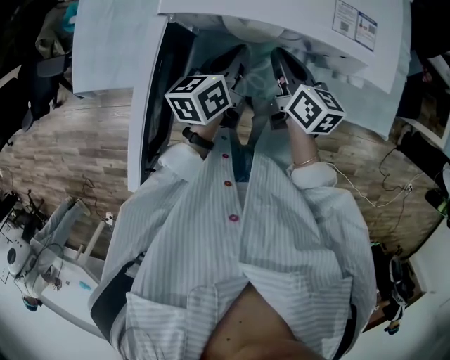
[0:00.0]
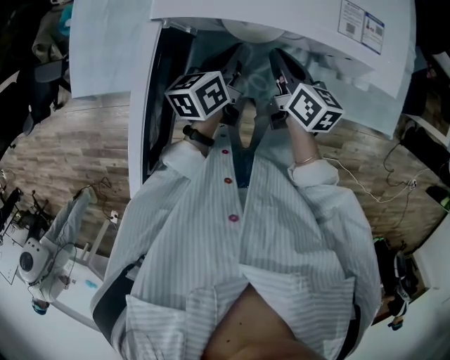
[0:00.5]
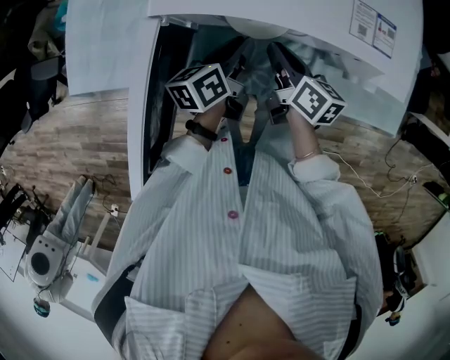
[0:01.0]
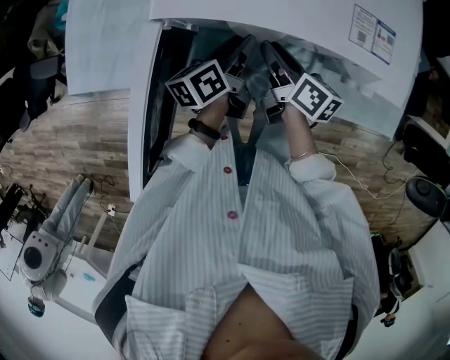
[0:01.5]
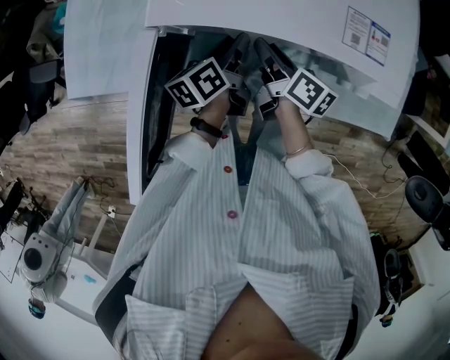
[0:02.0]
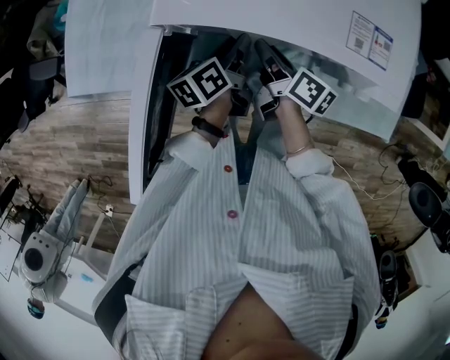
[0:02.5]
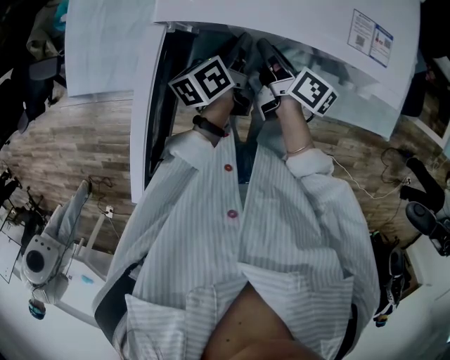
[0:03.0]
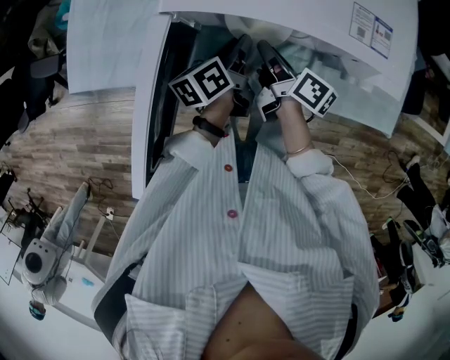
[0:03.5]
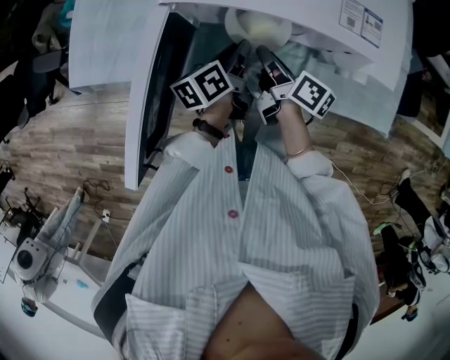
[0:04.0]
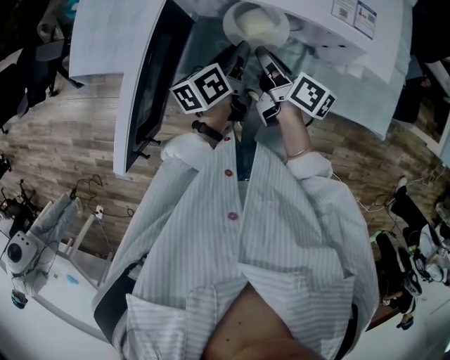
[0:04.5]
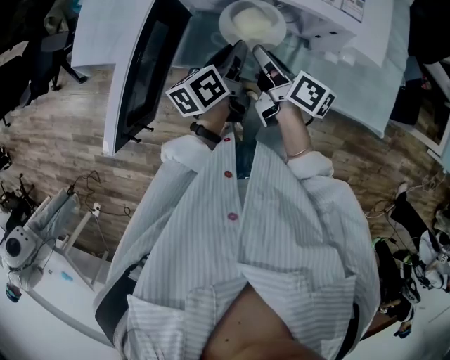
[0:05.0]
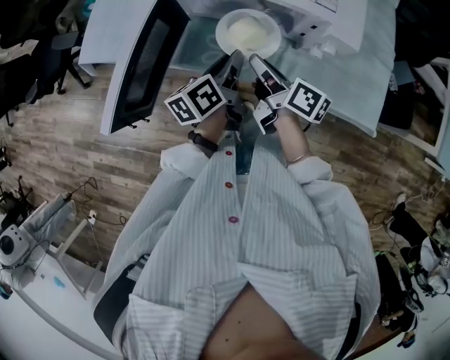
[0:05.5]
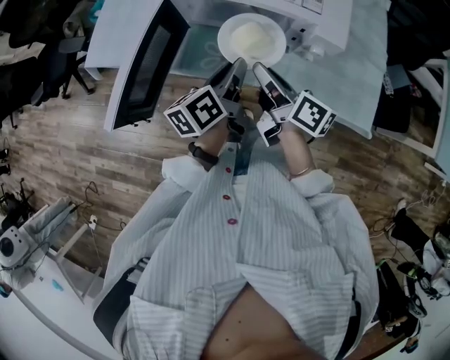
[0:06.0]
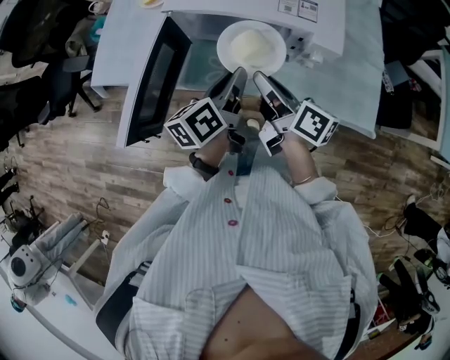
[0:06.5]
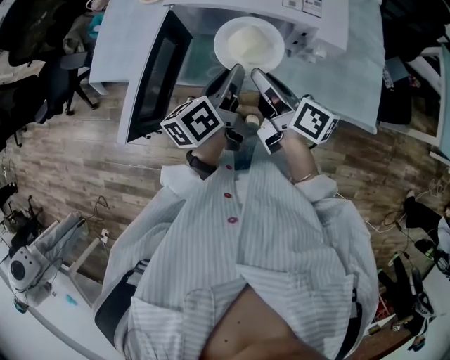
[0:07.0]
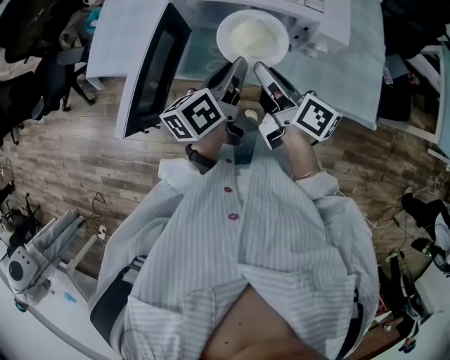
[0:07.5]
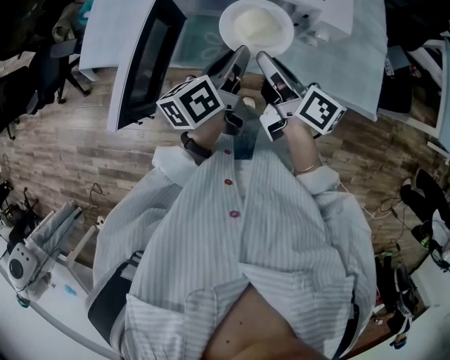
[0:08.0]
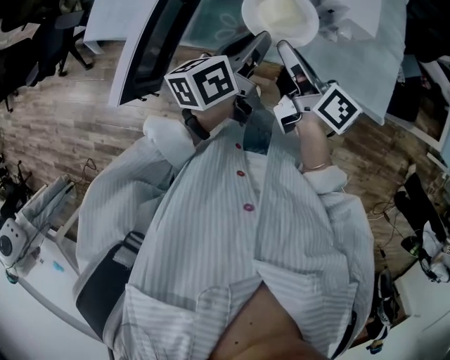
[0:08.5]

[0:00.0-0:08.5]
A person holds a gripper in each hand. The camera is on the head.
0:00.0 to 0:02.0: Both grippers travel together downward, approximately 5 cm. The right gripper turns by roughly 20 degrees, and opens. The left gripper opens.
0:02.0 to 0:04.0: The grippers move only a little.
0:04.0 to 0:06.5: Both grippers move upward and backward, roughly 20 cm.
0:06.5 to 0:08.5: The grippers move only a little.

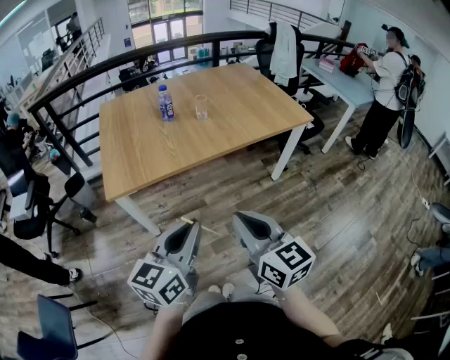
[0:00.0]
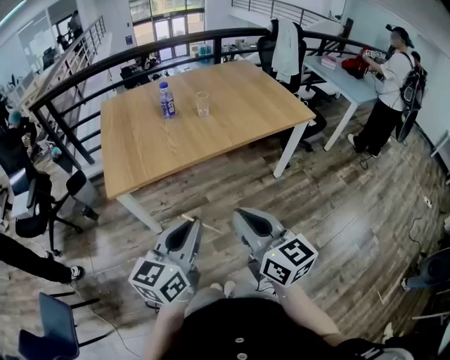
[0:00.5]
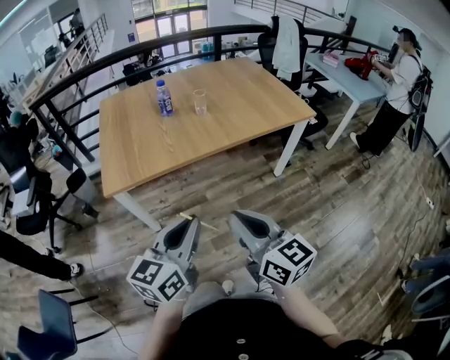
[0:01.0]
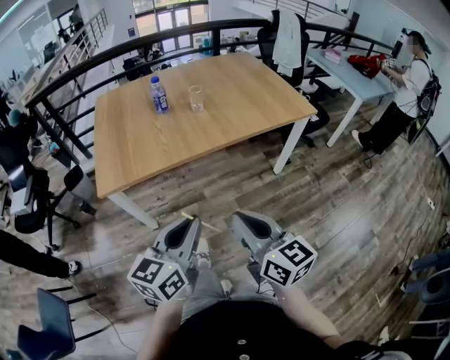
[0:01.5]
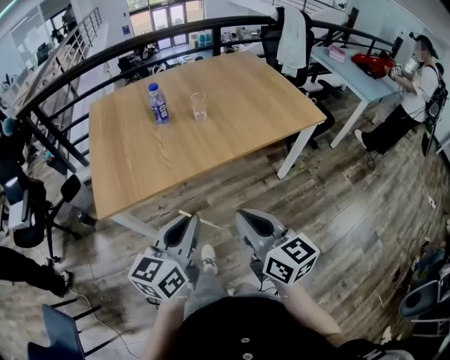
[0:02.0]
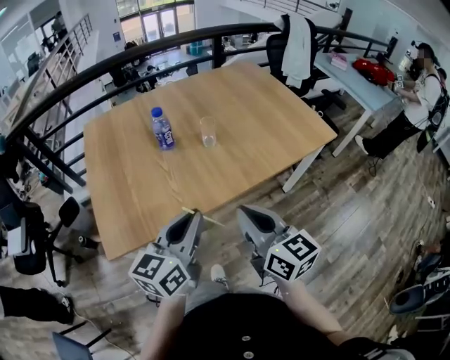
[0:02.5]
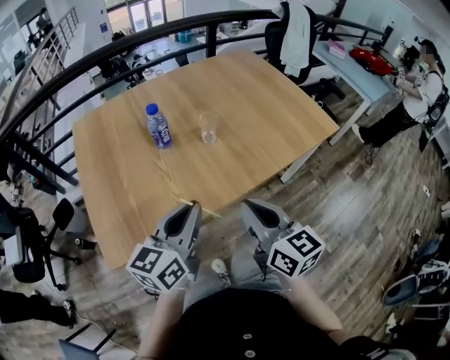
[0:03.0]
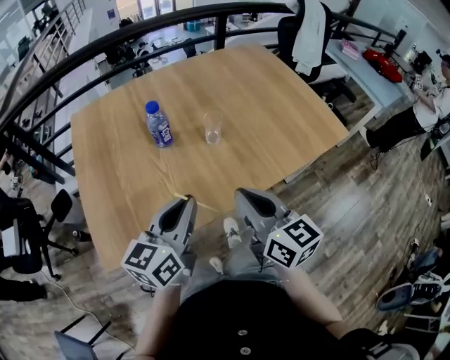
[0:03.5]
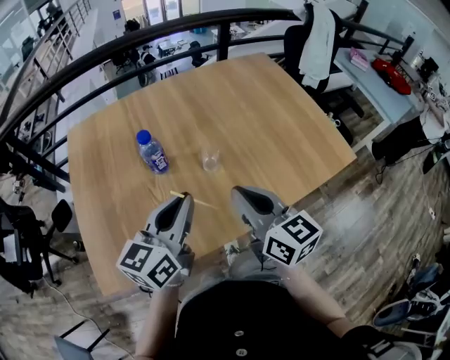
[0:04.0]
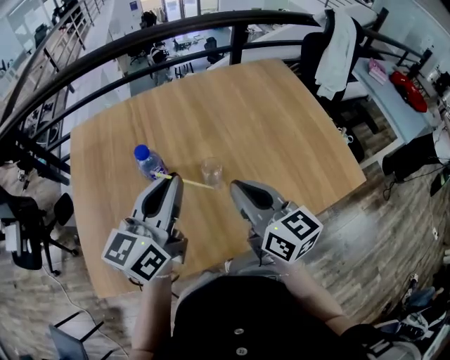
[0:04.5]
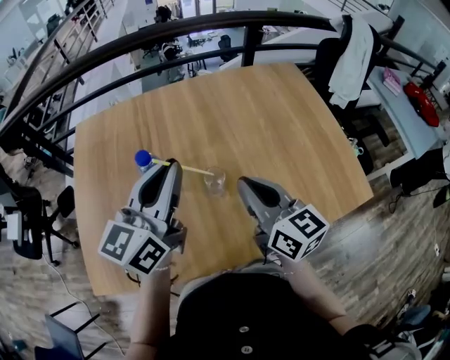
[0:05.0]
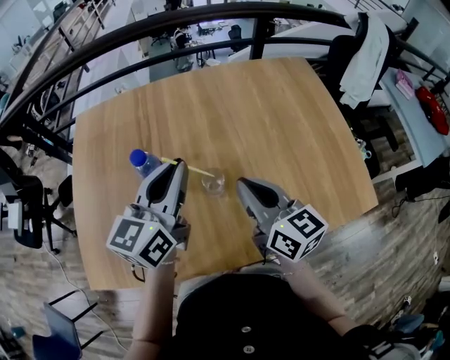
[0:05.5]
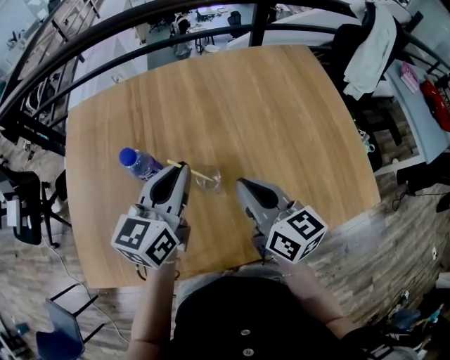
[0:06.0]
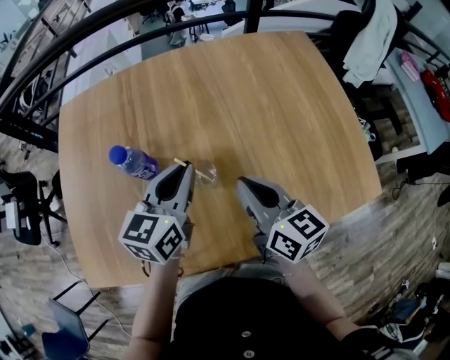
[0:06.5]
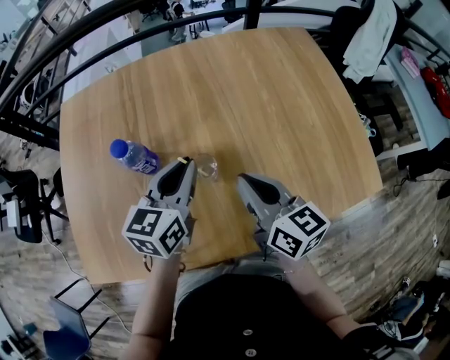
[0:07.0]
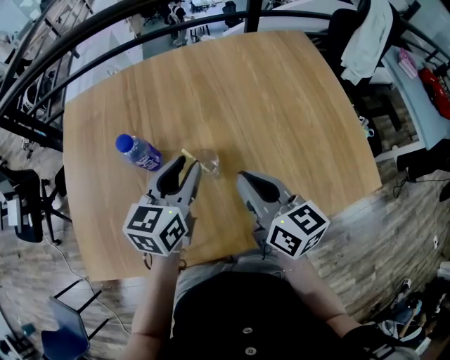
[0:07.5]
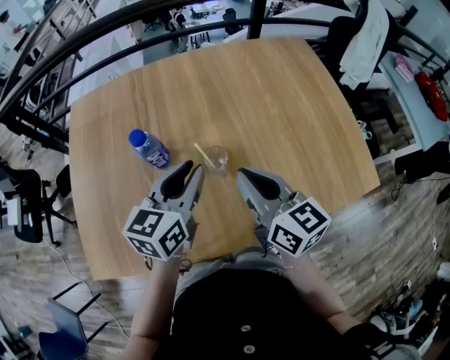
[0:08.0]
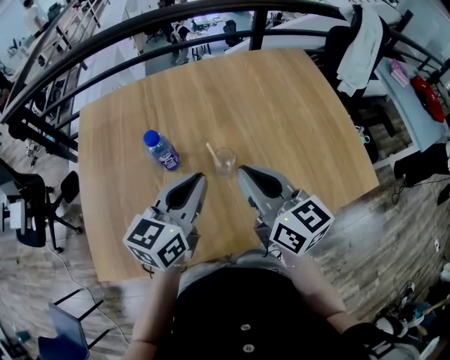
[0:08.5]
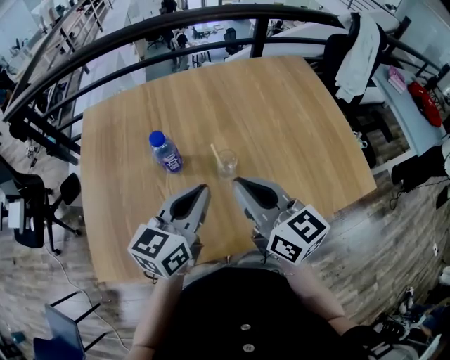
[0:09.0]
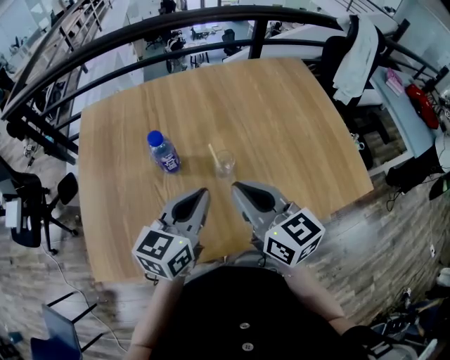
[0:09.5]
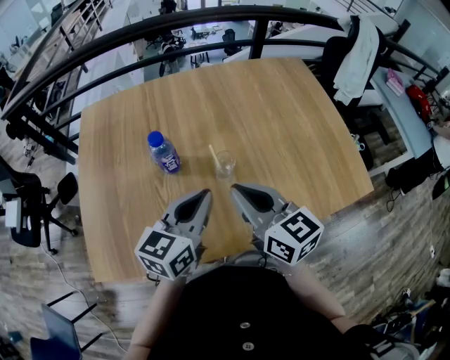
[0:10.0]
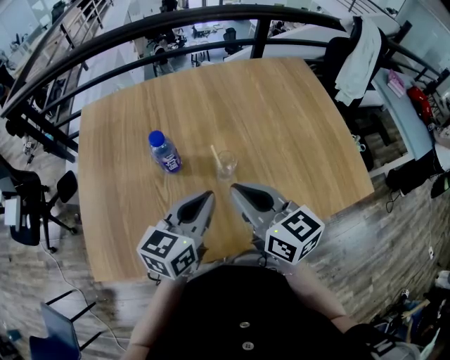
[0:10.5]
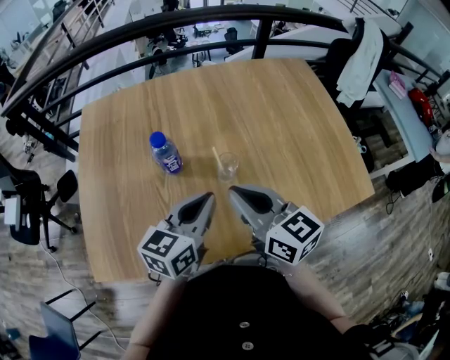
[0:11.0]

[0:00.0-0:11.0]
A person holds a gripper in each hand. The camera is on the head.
0:00.0 to 0:02.0: Both grippers move forward, some 15 cm.
0:02.0 to 0:03.5: The grippers both shift forward by roughly 30 cm.
0:03.5 to 0:05.5: Both grippers move forward, roughly 25 cm.
0:05.5 to 0:07.5: The left gripper is displaced downward by roughly 10 cm, and opens its fingers.
0:07.5 to 0:09.0: The right gripper moves upward, to the left and backward, approximately 10 cm, while the left gripper heads backward and upward, covering approximately 10 cm, and closes its fingers.
0:09.0 to 0:11.0: There are only small adjustments of the grippers.

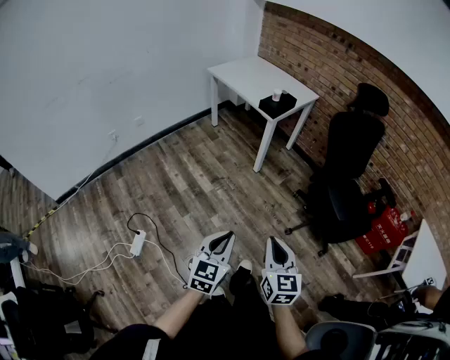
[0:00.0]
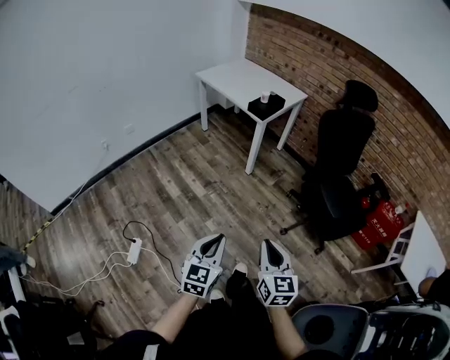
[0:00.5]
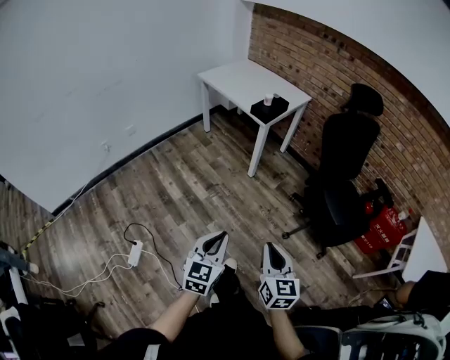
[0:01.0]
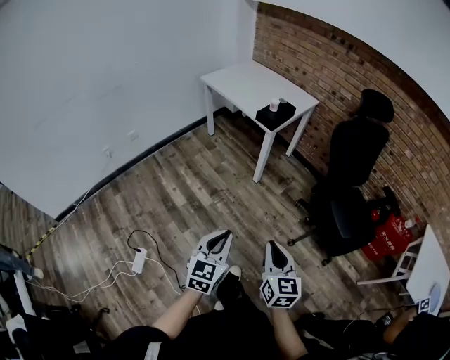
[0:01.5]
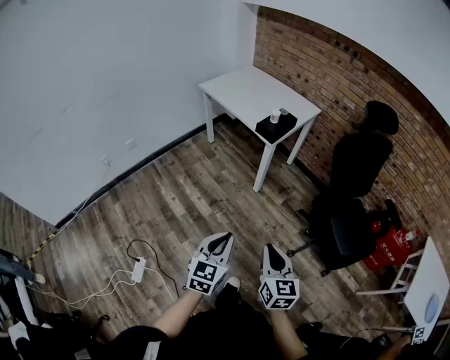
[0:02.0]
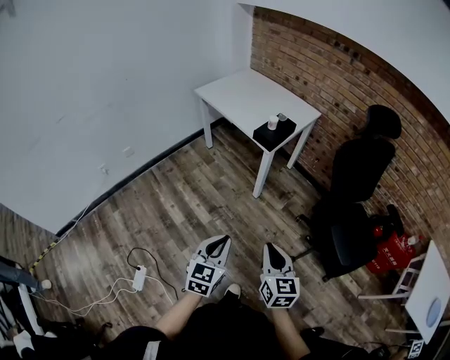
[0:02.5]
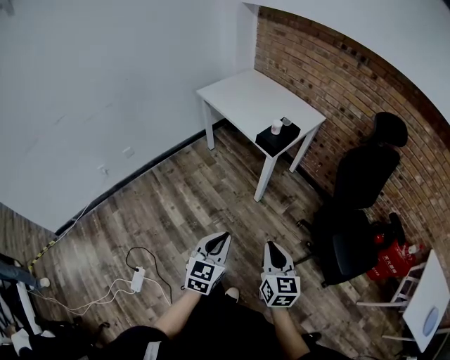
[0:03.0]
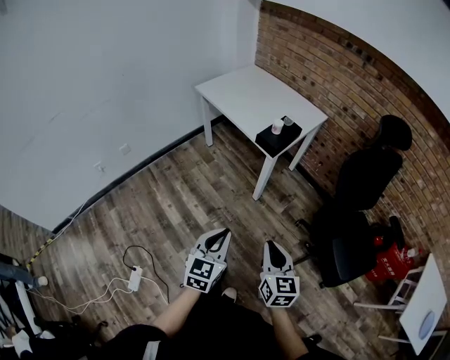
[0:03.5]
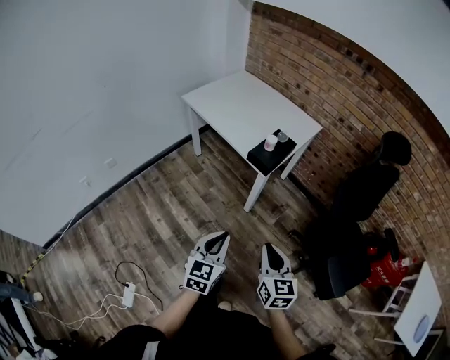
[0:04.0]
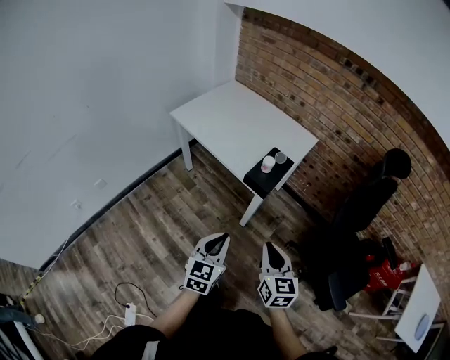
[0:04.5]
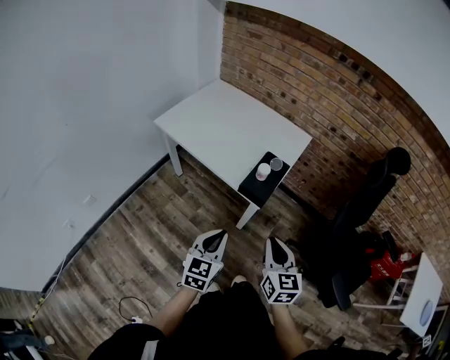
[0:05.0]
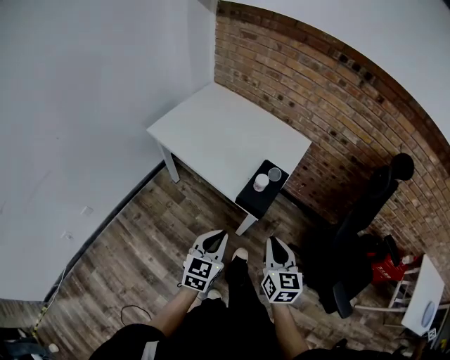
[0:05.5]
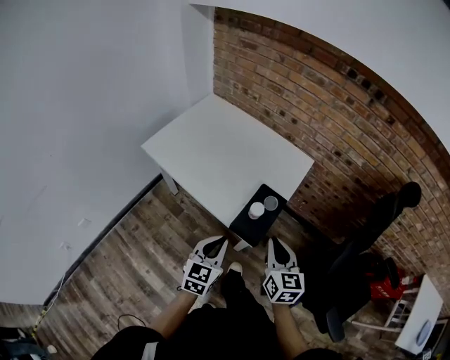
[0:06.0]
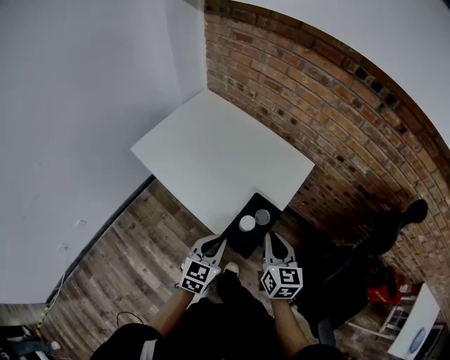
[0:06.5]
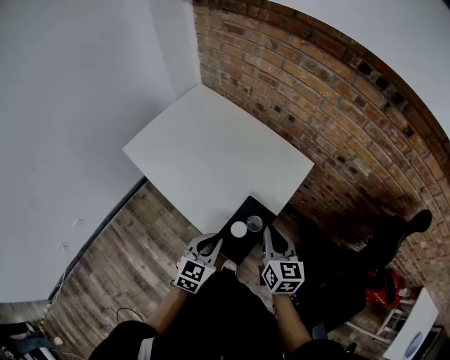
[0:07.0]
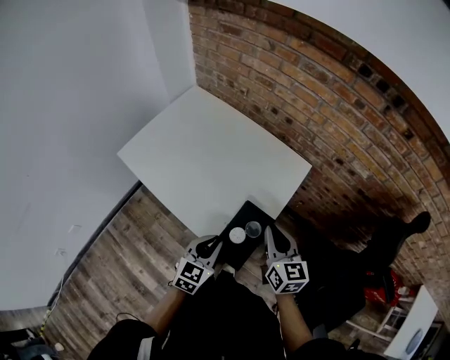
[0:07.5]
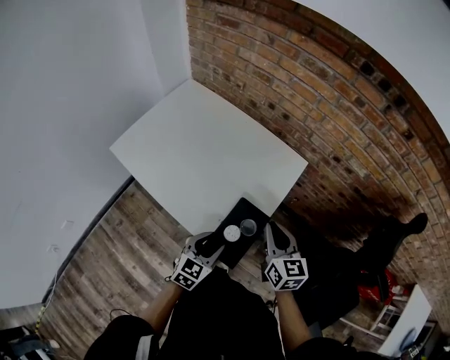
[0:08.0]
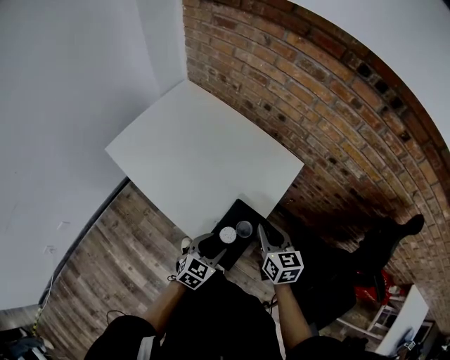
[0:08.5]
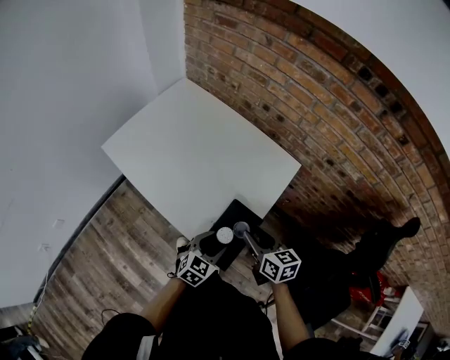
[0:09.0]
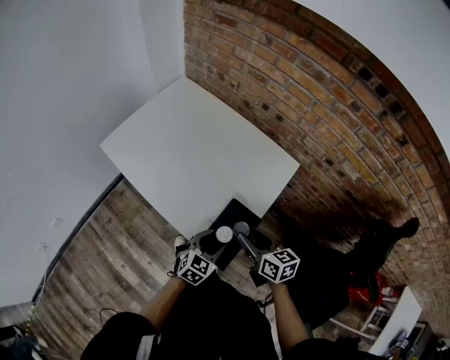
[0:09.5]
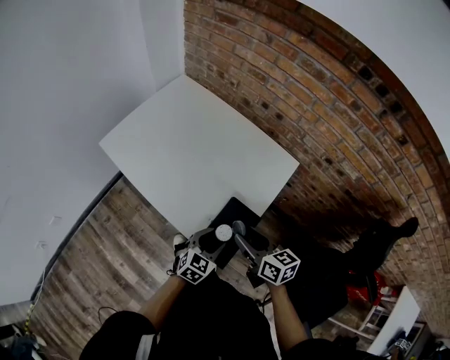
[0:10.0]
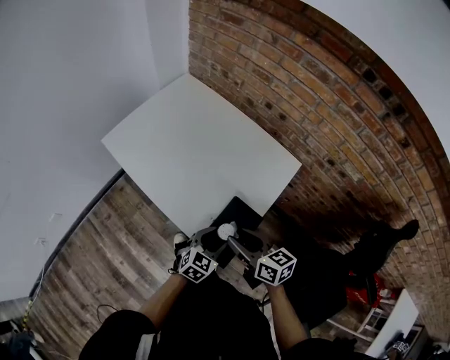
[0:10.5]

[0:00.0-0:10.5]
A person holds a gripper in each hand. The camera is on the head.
0:00.0 to 0:02.0: Both grippers move forward, roughly 20 cm.
0:02.0 to 0:04.0: The two grippers go roughly 25 cm forward.
0:04.0 to 0:06.5: The pair of grippers is taken forward, roughly 50 cm.
0:06.5 to 0:08.5: The left gripper heads downward, to the right and forward, covering approximately 15 cm, and opens; the right gripper shifts approximately 10 cm forward and downward.
0:08.5 to 0:10.5: The right gripper heads to the left, covering roughly 10 cm, swivels approximately 30 degrees, and opens up.
